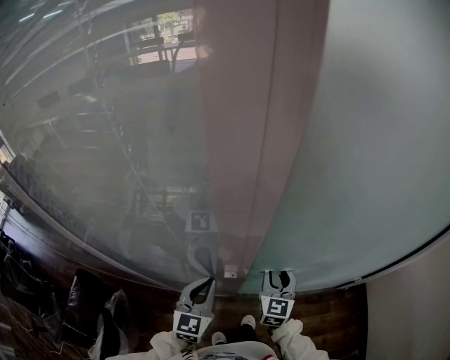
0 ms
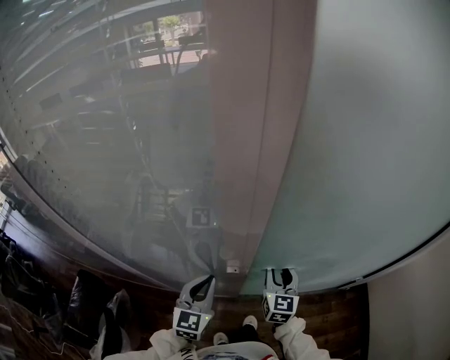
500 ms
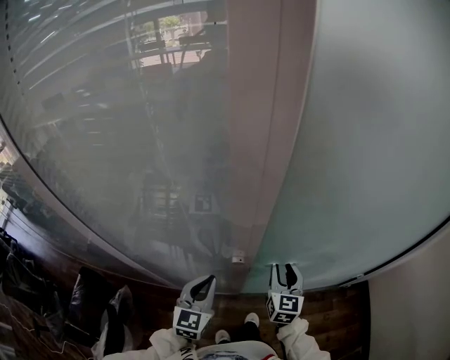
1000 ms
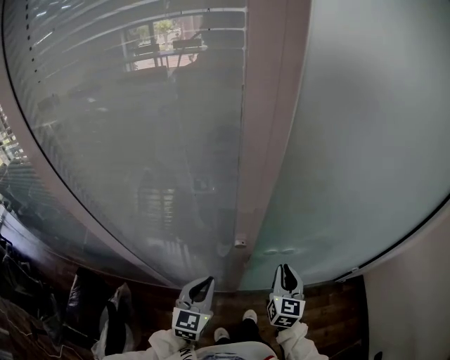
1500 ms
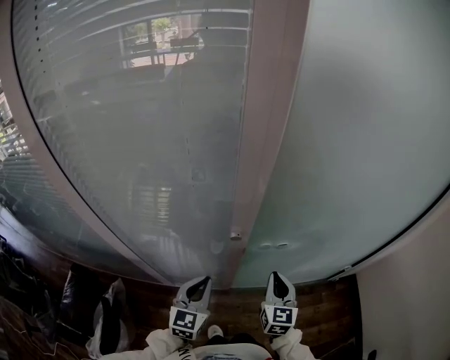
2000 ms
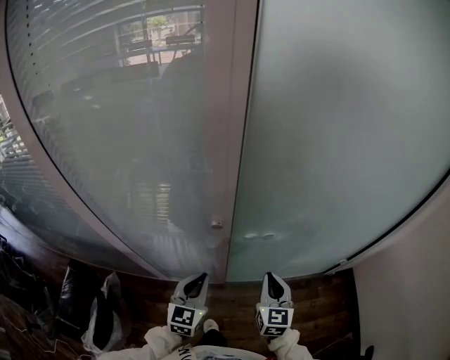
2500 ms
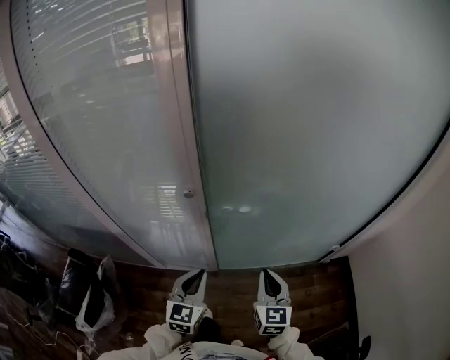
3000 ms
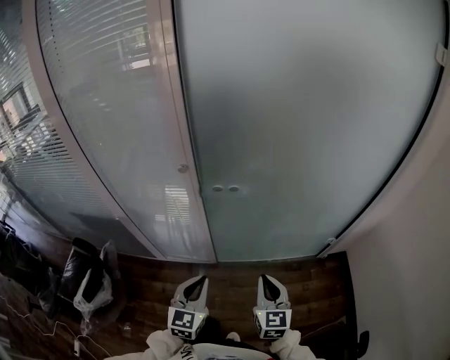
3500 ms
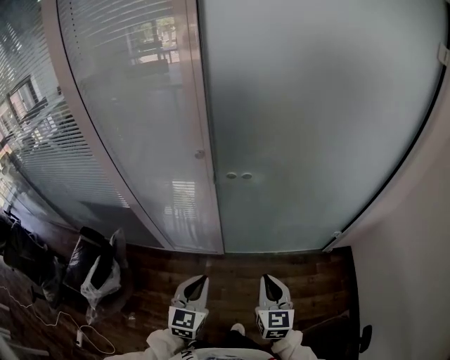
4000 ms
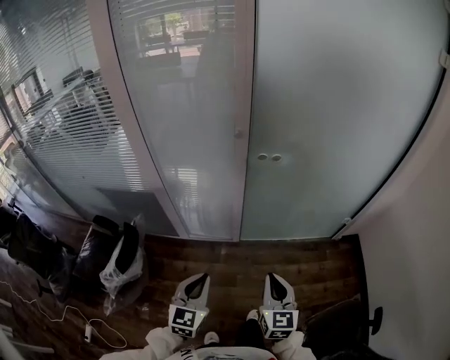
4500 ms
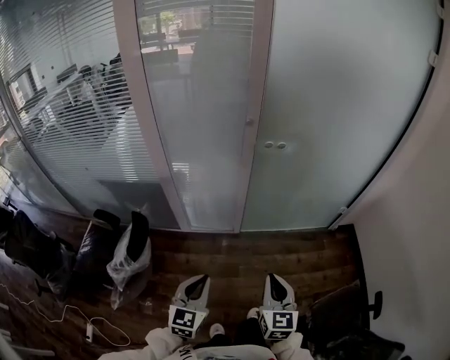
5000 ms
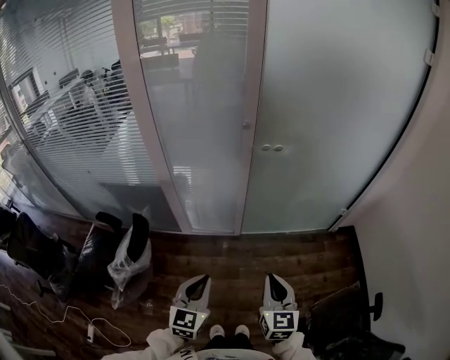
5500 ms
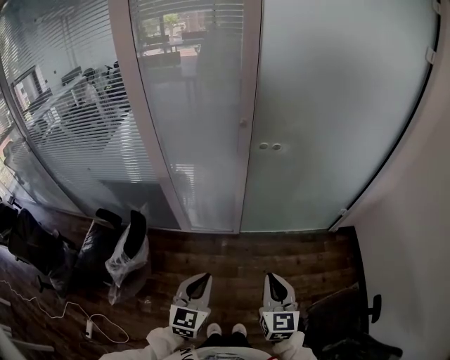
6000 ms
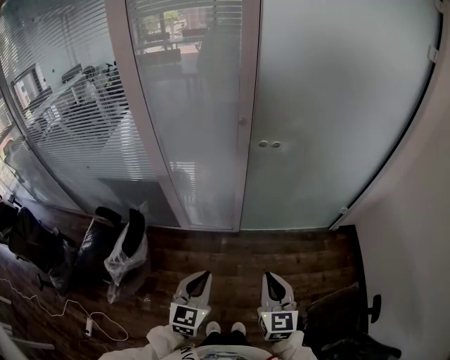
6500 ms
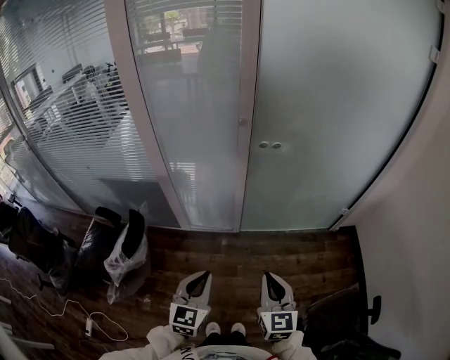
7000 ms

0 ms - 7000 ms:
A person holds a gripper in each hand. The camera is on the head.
0 ms - 2000 ms: Both grippers move backward, approximately 10 cm. The right gripper closes.
2000 ms - 3500 ms: Both grippers move backward and to the right, about 25 cm.
3500 ms - 5000 ms: The two grippers go about 30 cm backward and to the left.
5000 ms - 7000 ms: The left gripper changes place by roughly 5 cm.

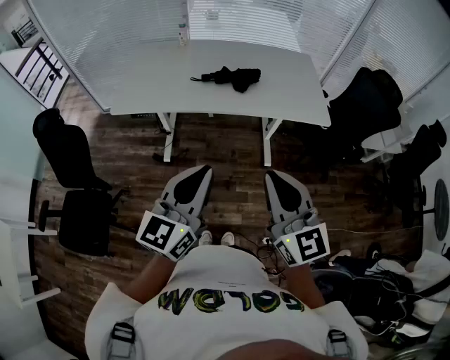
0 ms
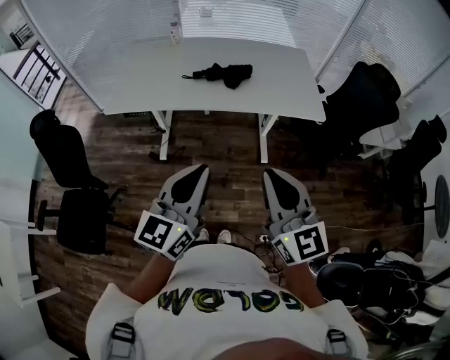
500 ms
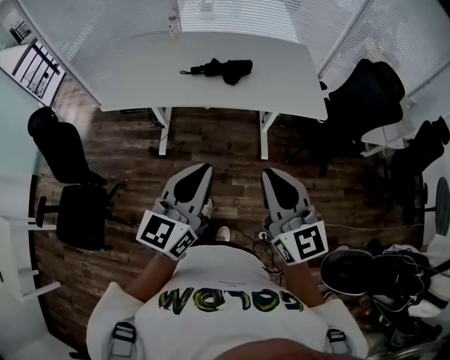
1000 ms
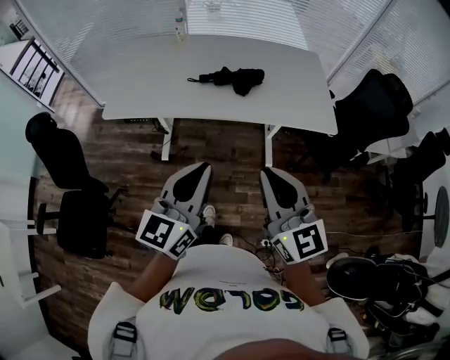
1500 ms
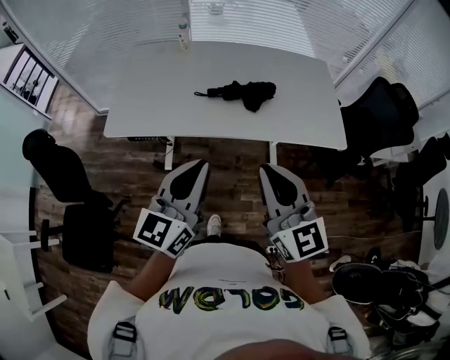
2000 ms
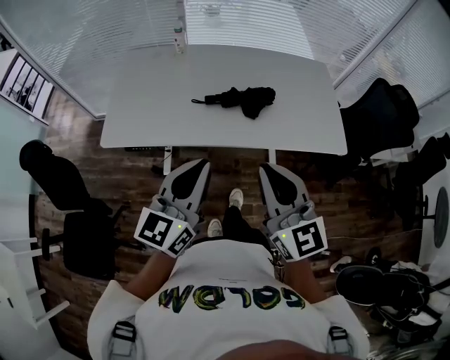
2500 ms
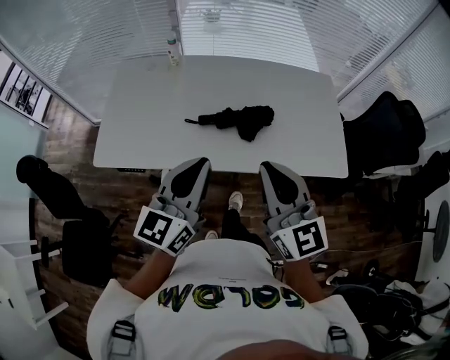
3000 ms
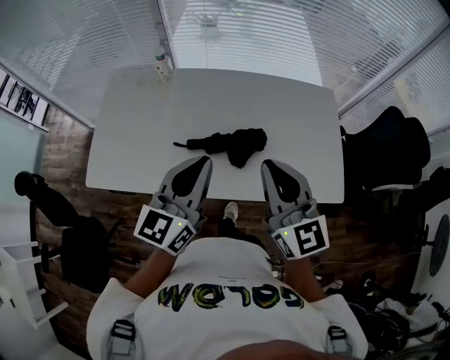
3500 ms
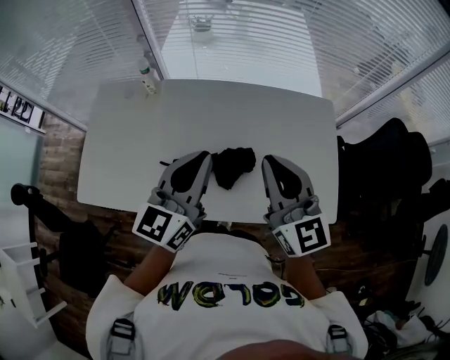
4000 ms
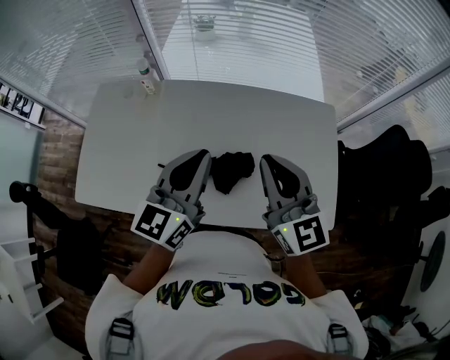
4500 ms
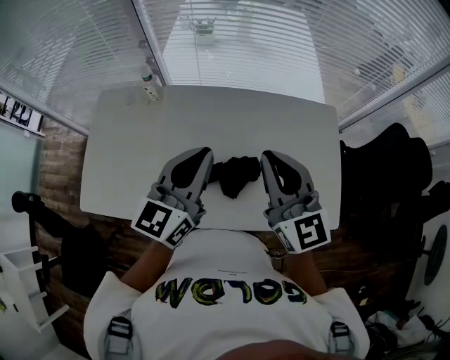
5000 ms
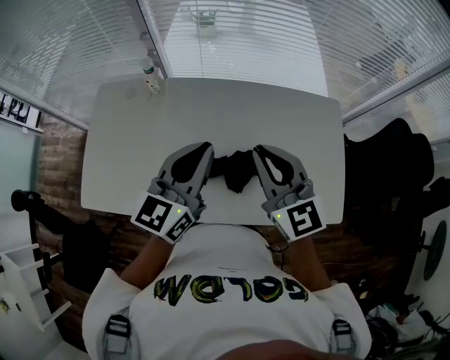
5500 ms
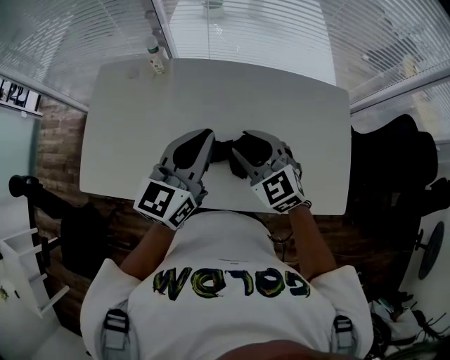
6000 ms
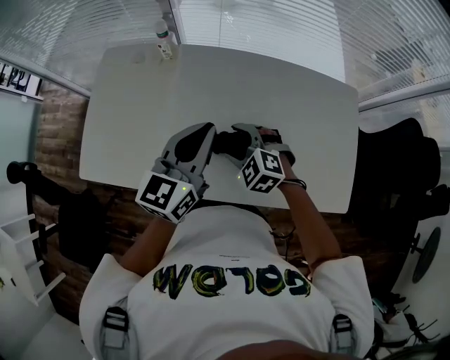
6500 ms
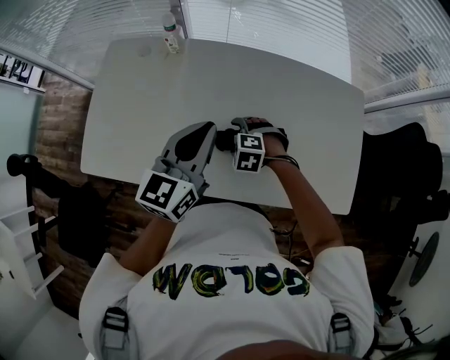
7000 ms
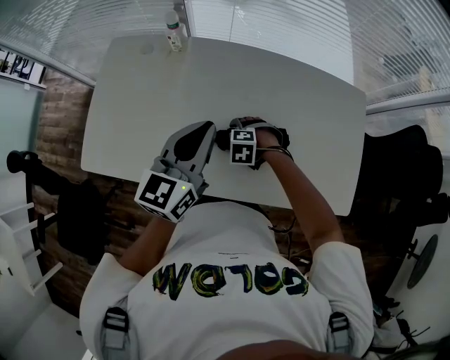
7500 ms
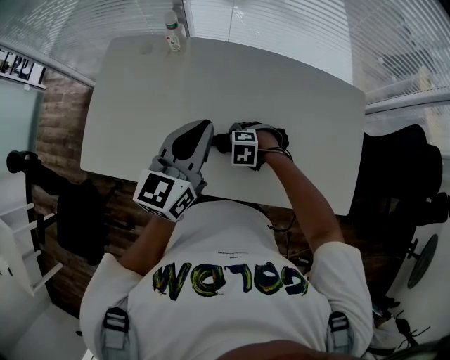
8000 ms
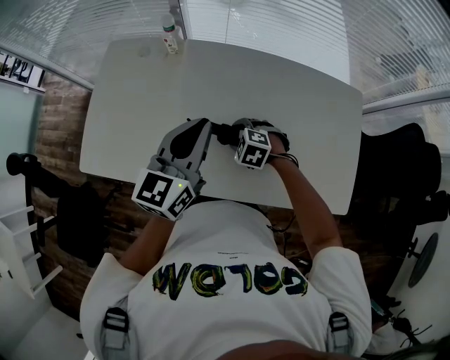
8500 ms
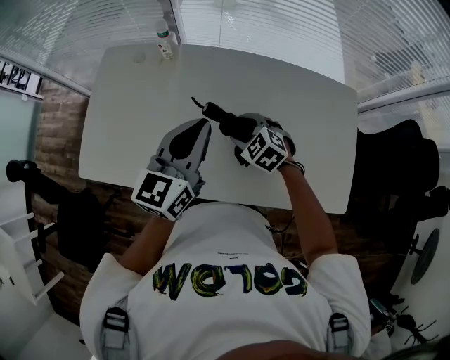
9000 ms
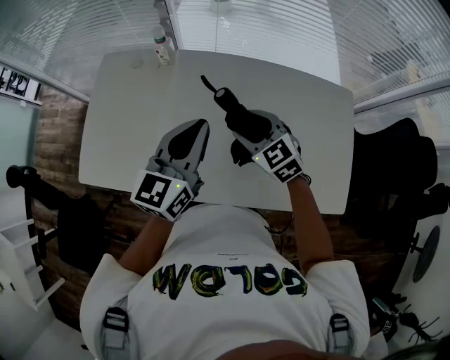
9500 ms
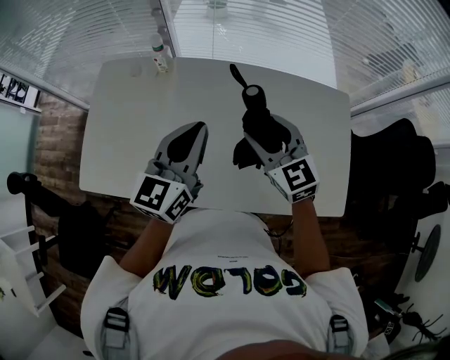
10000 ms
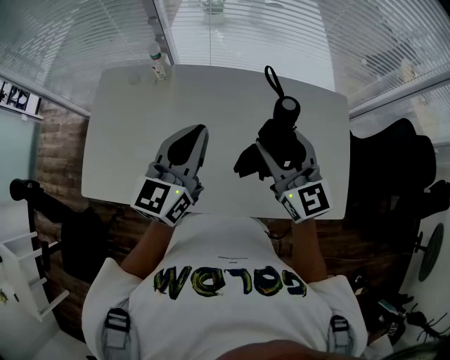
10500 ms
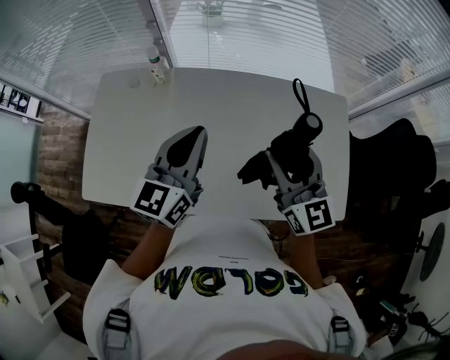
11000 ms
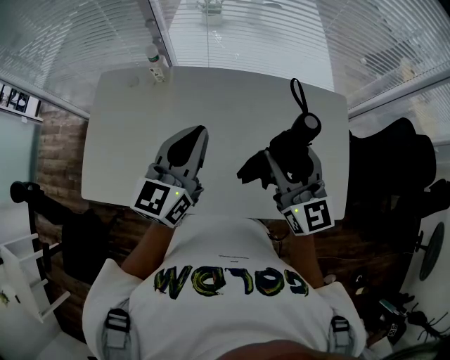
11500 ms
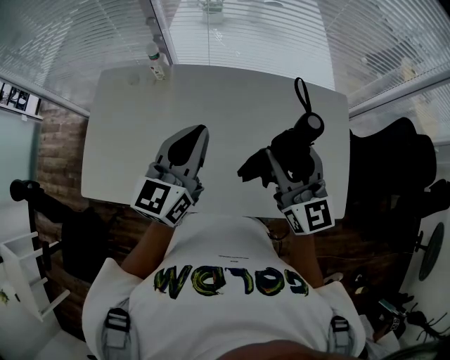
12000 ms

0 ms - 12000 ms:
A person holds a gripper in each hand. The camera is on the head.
0 ms - 2000 ms: Both grippers move forward, approximately 20 cm.
2000 ms - 4000 ms: The pair of grippers is taken forward, approximately 40 cm.
4000 ms - 6000 ms: The left gripper shifts about 5 cm to the left, while the right gripper is displaced downward, to the left and forward by some 20 cm, swivels about 40 degrees, and opens up.
6000 ms - 8000 ms: The left gripper moves roughly 5 cm; the right gripper travels downward by about 25 cm, tilts its fingers about 50 degrees downward, and opens and closes again.
8000 ms - 10000 ms: The right gripper goes about 25 cm upward, and tilts its fingers roughly 60 degrees upward.
10000 ms - 12000 ms: The right gripper shifts approximately 10 cm upward and to the right, and changes its angle by approximately 20 degrees.

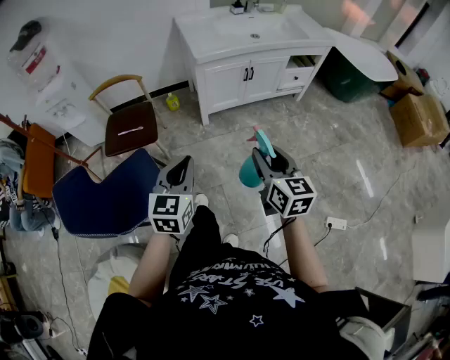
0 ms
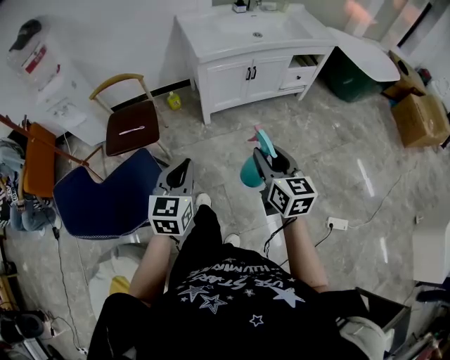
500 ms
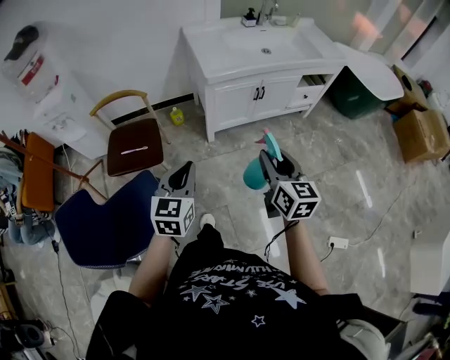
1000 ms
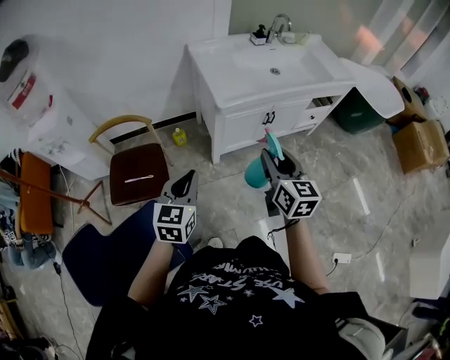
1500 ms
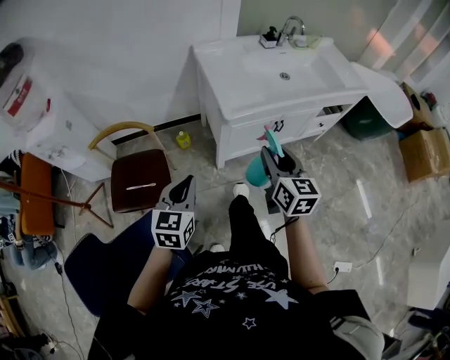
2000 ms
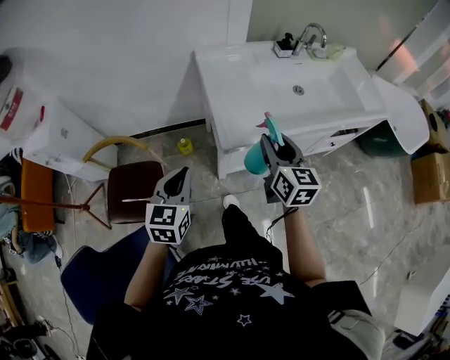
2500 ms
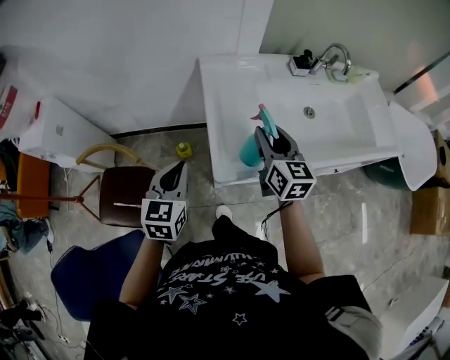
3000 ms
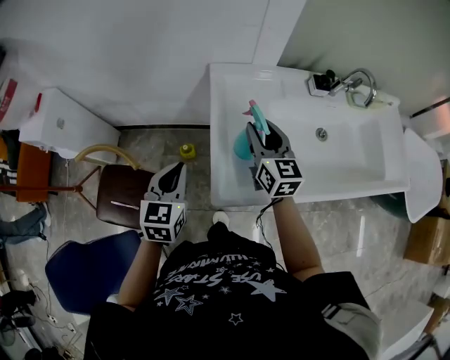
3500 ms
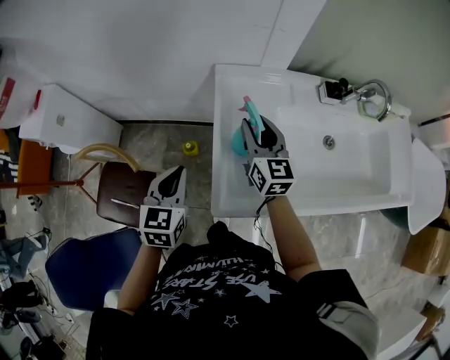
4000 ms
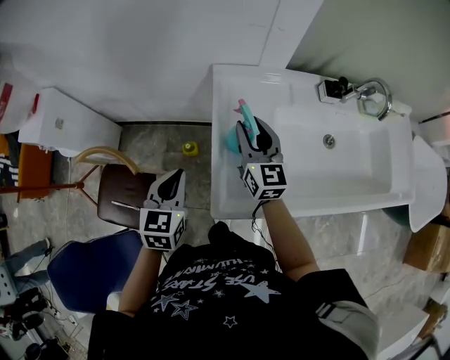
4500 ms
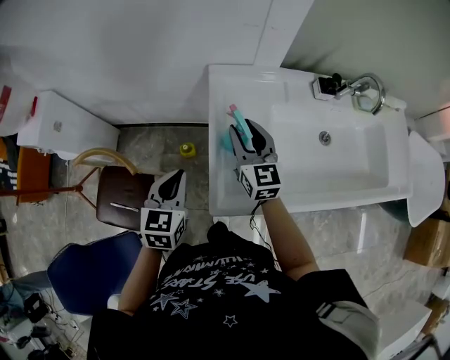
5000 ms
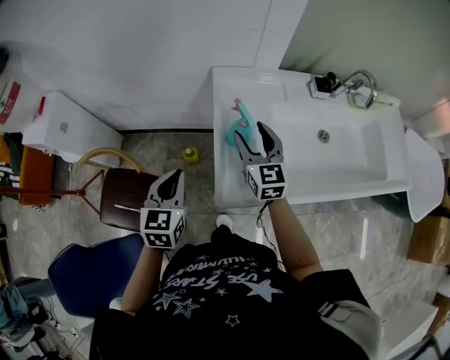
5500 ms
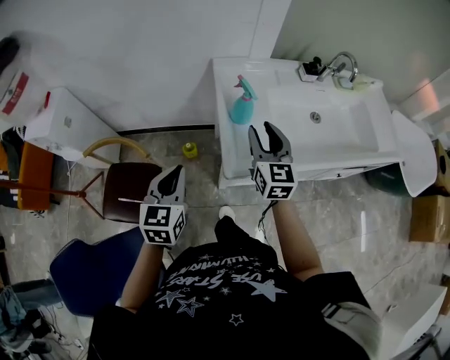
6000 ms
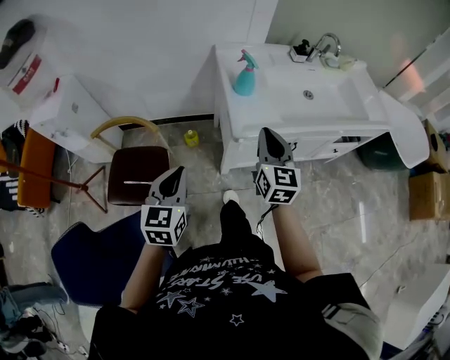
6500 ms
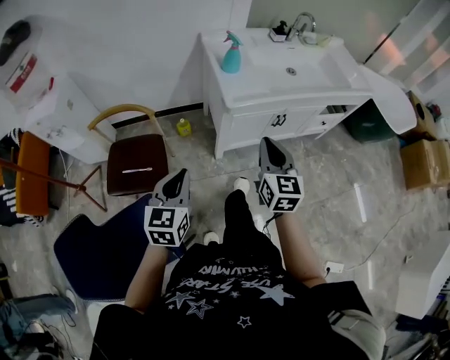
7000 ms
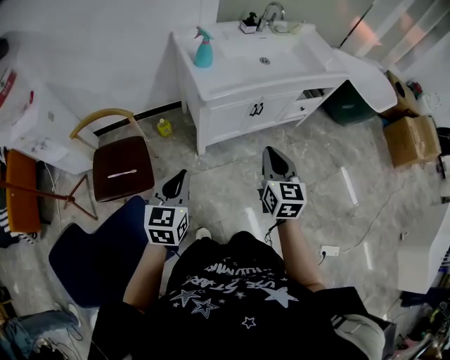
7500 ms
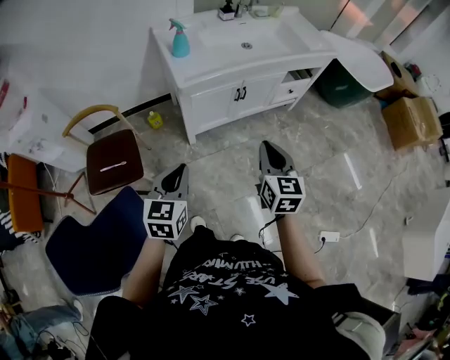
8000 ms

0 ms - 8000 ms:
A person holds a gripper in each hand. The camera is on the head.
0 ms - 2000 ms: The left gripper shifts roughly 35 cm forward and to the left. Meanwhile the right gripper shifts roughly 40 cm forward.
2000 ms - 4000 ms: Both grippers are carried forward, roughly 50 cm. The right gripper changes its angle by roughly 20 degrees, while the left gripper turns by roughly 20 degrees.
4000 ms - 6000 ms: The two grippers go some 15 cm backward.
6000 ms - 8000 ms: Both grippers move backward and to the right, approximately 50 cm. The right gripper changes its angle by about 20 degrees, and closes, while the left gripper turns by some 20 degrees.
